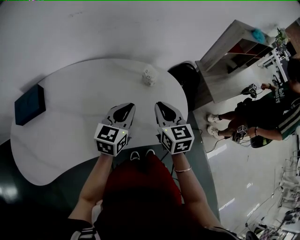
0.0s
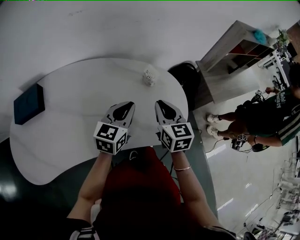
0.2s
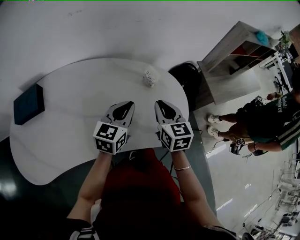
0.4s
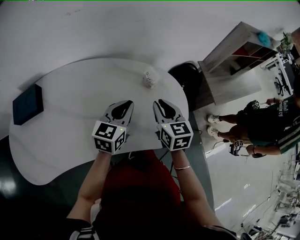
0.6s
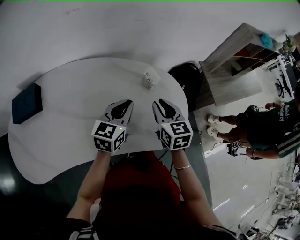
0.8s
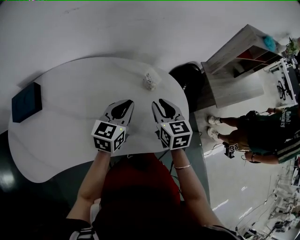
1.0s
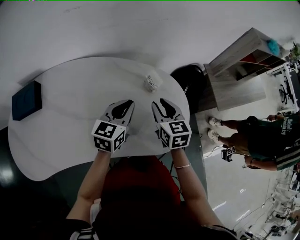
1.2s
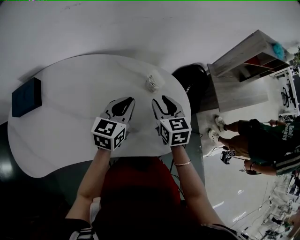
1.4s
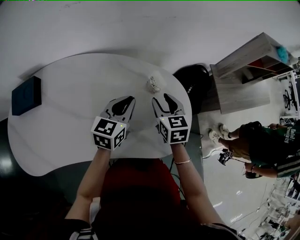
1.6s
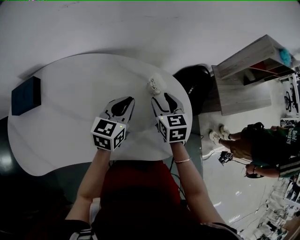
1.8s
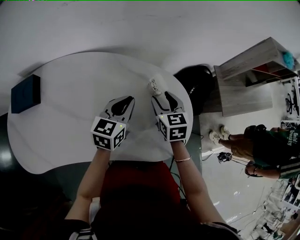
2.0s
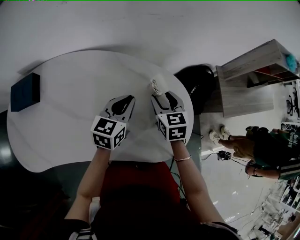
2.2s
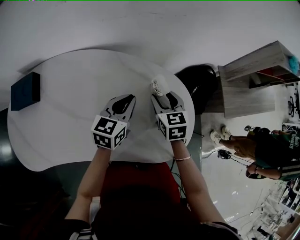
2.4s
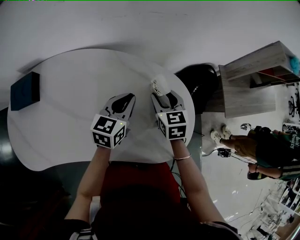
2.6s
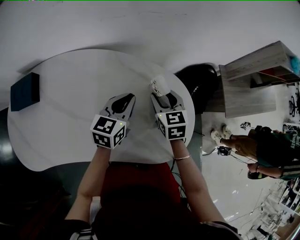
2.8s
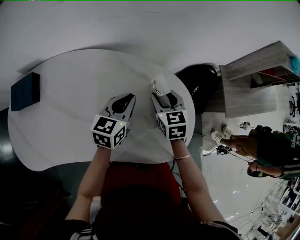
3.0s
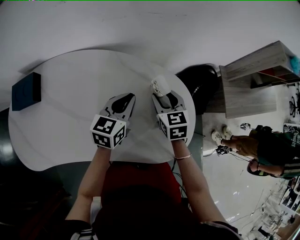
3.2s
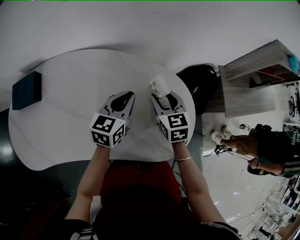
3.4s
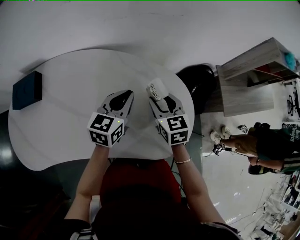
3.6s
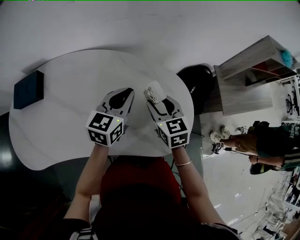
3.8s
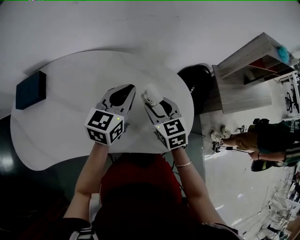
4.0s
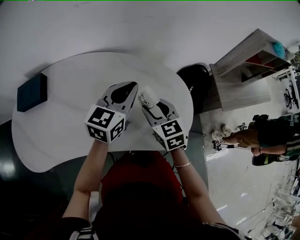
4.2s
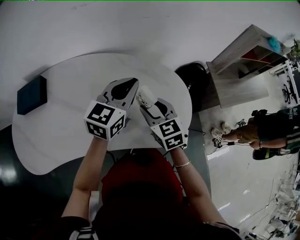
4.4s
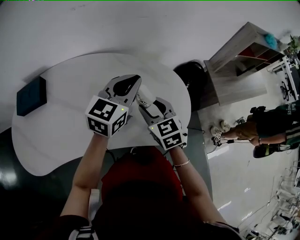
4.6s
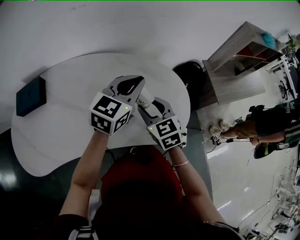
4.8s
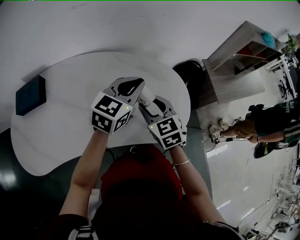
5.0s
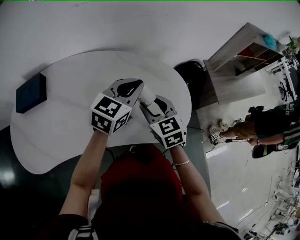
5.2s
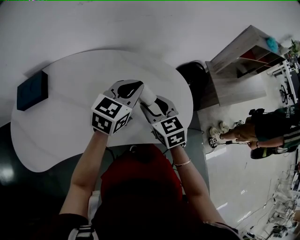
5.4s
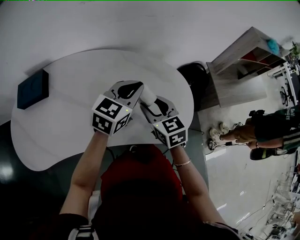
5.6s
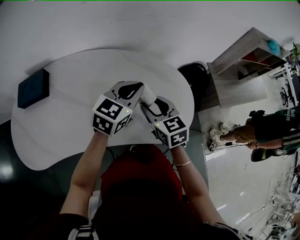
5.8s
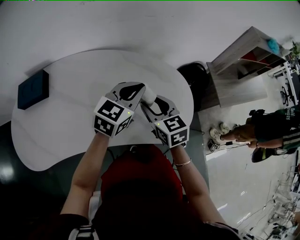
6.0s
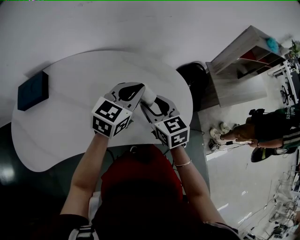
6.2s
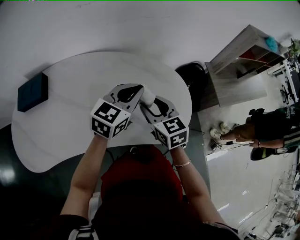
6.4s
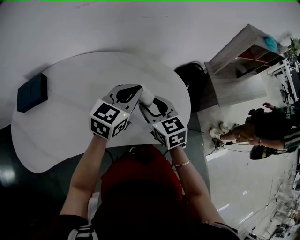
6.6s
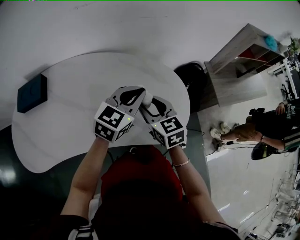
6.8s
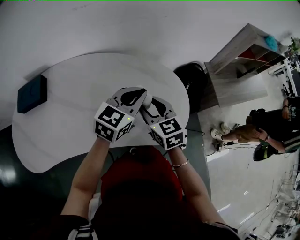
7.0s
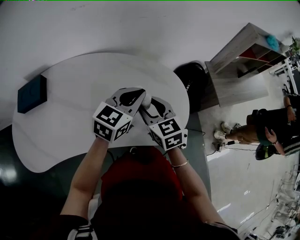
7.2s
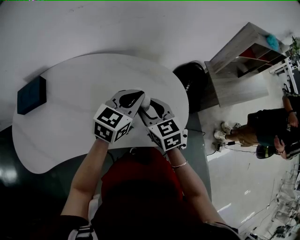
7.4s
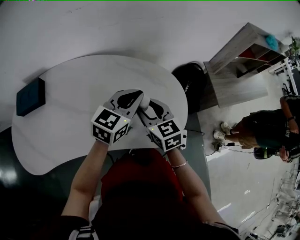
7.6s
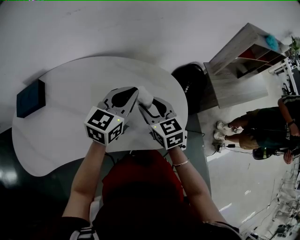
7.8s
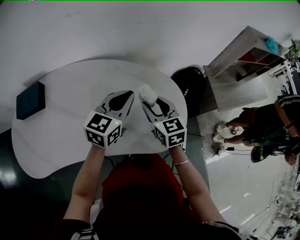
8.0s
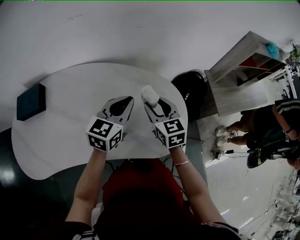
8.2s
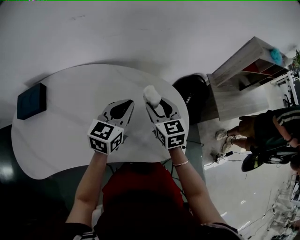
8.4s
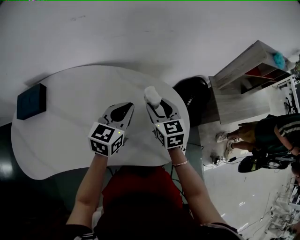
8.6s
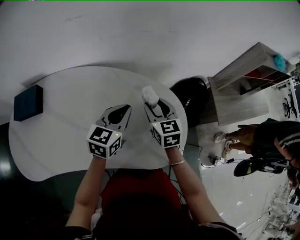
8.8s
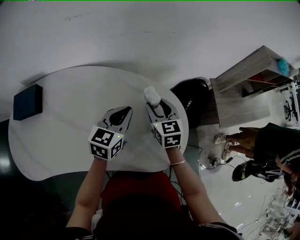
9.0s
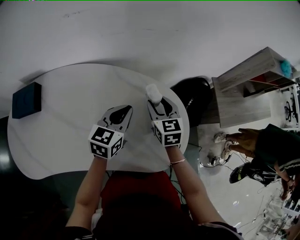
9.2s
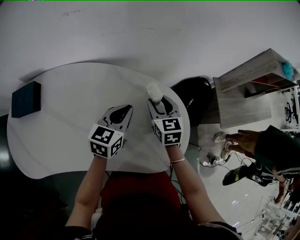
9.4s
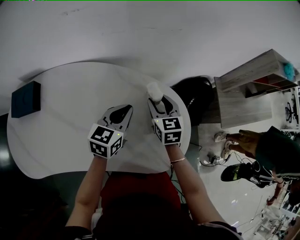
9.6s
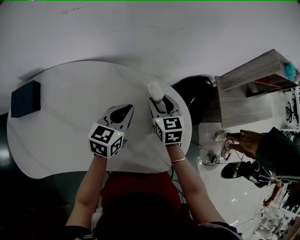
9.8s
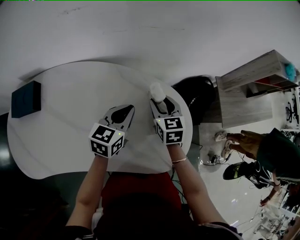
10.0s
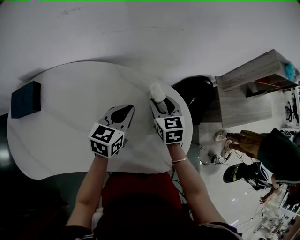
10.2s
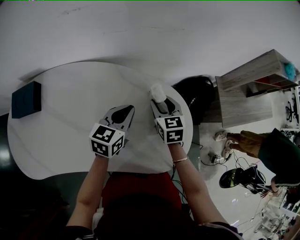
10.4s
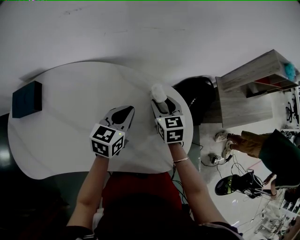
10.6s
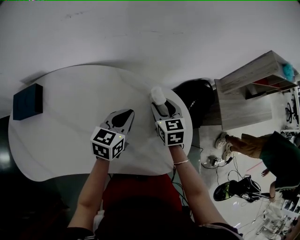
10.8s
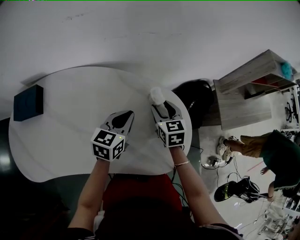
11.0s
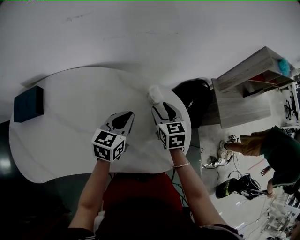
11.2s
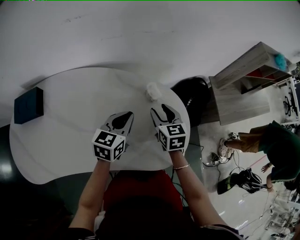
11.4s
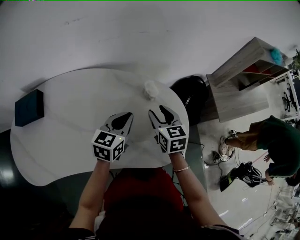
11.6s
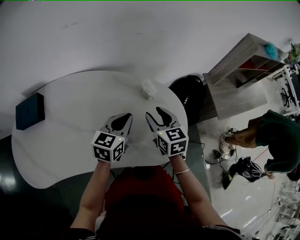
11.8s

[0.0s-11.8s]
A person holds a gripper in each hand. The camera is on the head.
0.0s to 1.4s: The left gripper goes roughly 5 cm forward. The right gripper heads forward and downward, covering roughly 10 cm, and opens up.
1.4s to 3.0s: The right gripper shifts roughly 5 cm forward.
3.0s to 4.4s: The left gripper heads upward, covering roughly 15 cm; the right gripper is displaced backward, upward and to the left by approximately 15 cm.
4.4s to 6.0s: The grippers make only small movements.
6.0s to 7.4s: There are only small adjustments of the grippers.
7.4s to 8.8s: The right gripper heads forward, covering some 10 cm. The left gripper goes approximately 5 cm forward.
8.8s to 10.4s: The right gripper shifts by roughly 5 cm.
10.4s to 11.8s: The right gripper travels backward and upward by roughly 10 cm. Meanwhile the left gripper shifts about 5 cm backward.

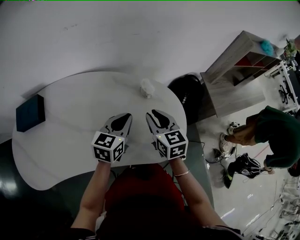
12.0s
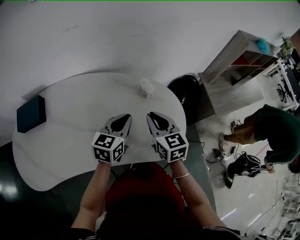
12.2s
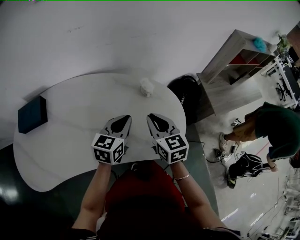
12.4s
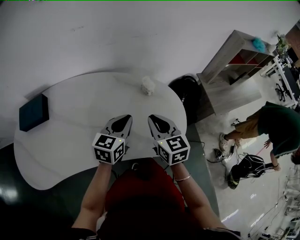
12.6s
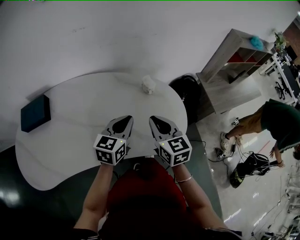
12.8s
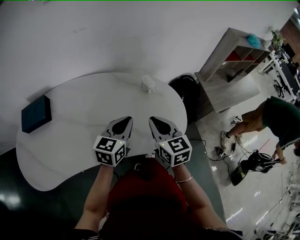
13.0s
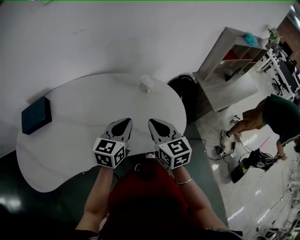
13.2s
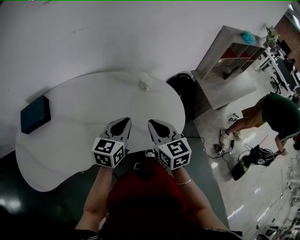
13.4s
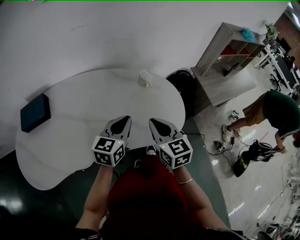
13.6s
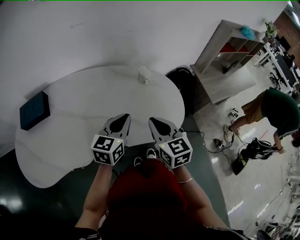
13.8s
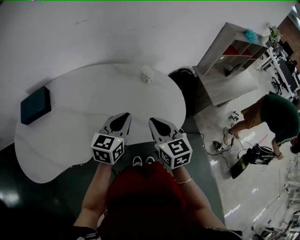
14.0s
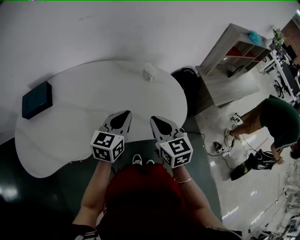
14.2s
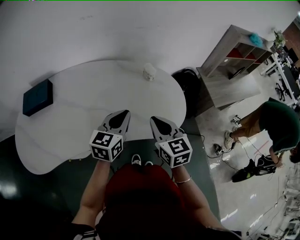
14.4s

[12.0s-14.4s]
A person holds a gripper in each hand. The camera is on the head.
12.0s to 13.2s: Both grippers travel together backward, approximately 10 cm. The right gripper closes up.
13.2s to 14.4s: The grippers stay close to where they were, moving slightly.

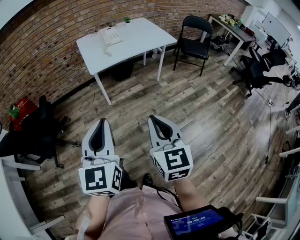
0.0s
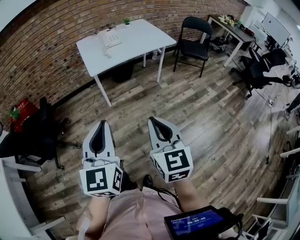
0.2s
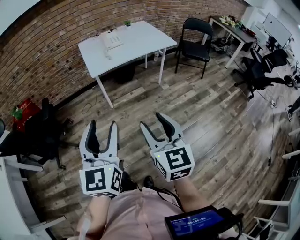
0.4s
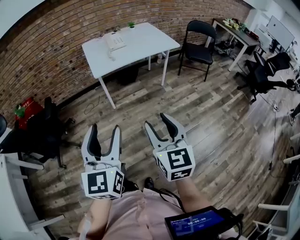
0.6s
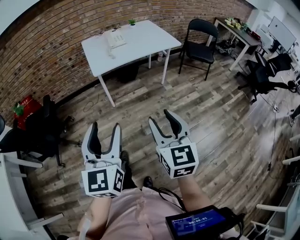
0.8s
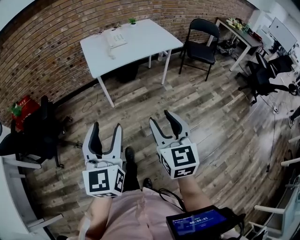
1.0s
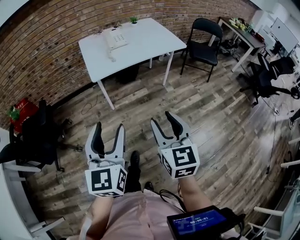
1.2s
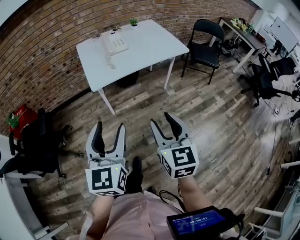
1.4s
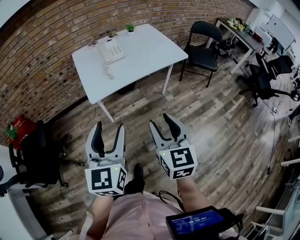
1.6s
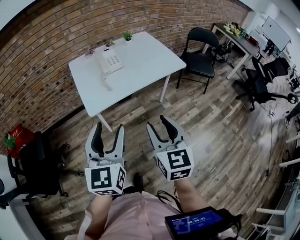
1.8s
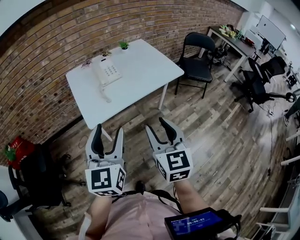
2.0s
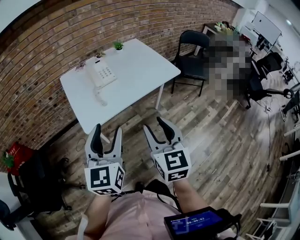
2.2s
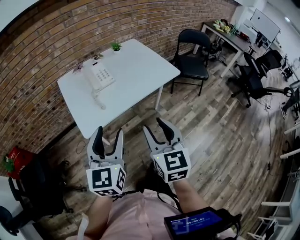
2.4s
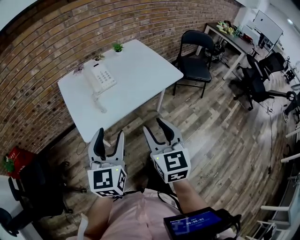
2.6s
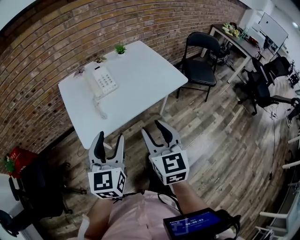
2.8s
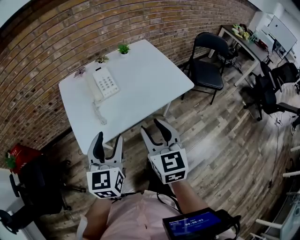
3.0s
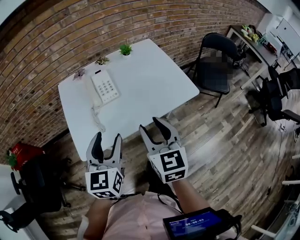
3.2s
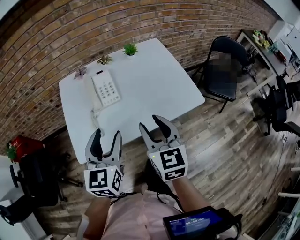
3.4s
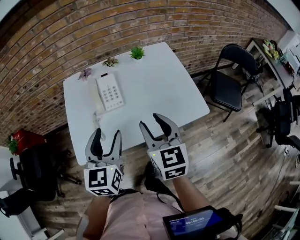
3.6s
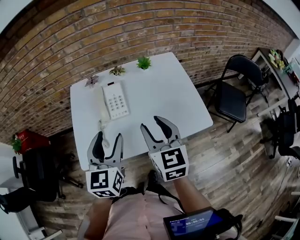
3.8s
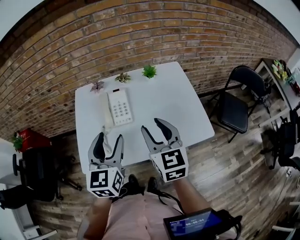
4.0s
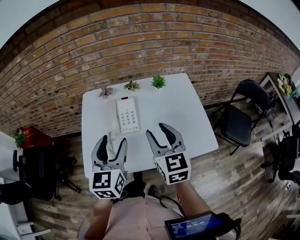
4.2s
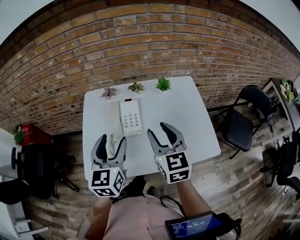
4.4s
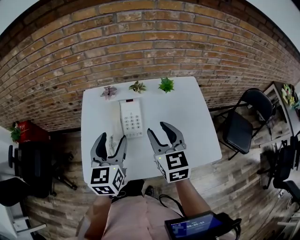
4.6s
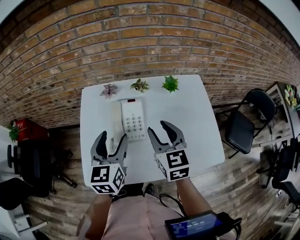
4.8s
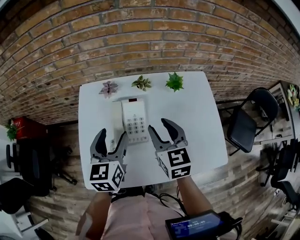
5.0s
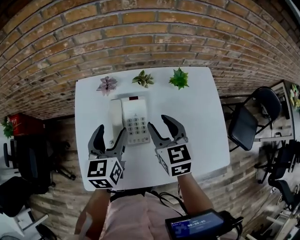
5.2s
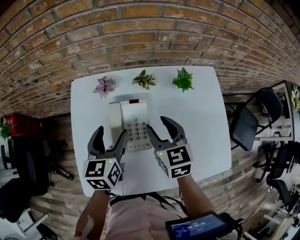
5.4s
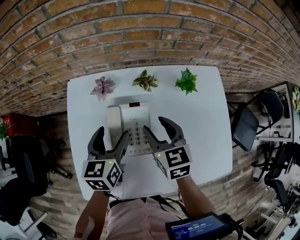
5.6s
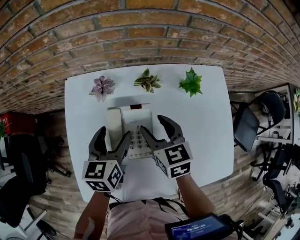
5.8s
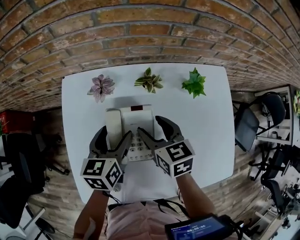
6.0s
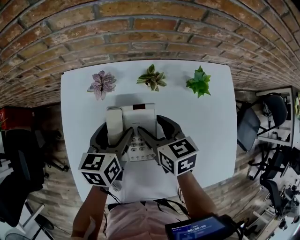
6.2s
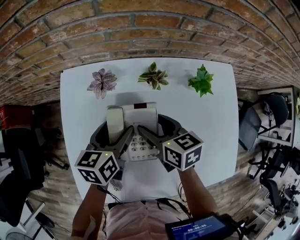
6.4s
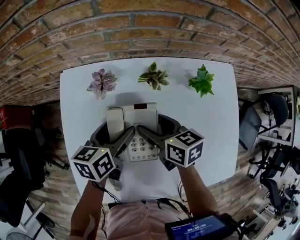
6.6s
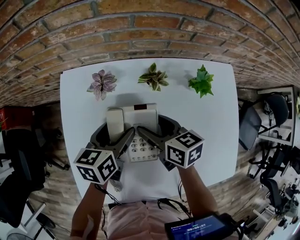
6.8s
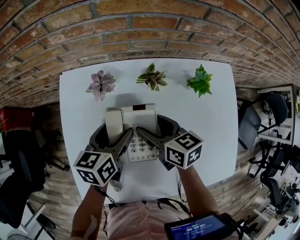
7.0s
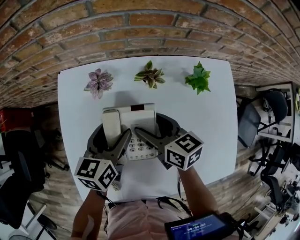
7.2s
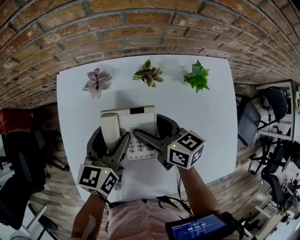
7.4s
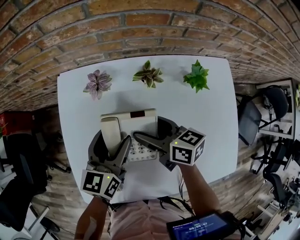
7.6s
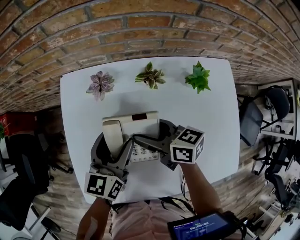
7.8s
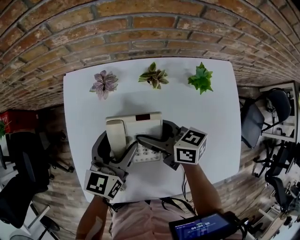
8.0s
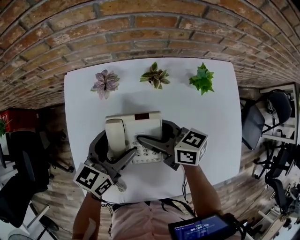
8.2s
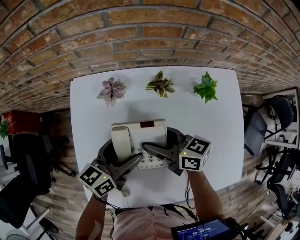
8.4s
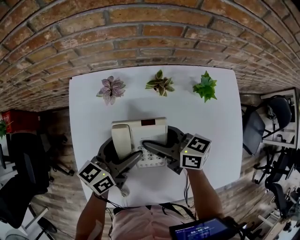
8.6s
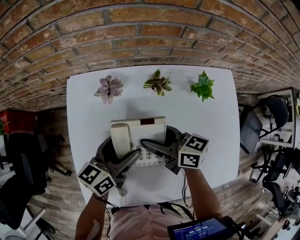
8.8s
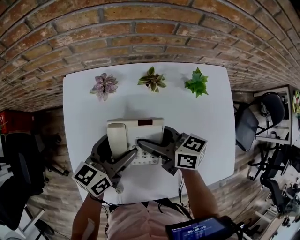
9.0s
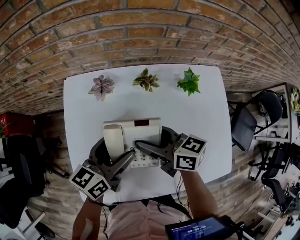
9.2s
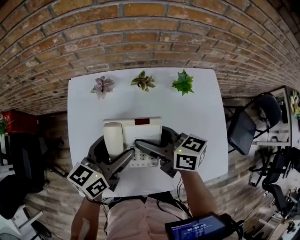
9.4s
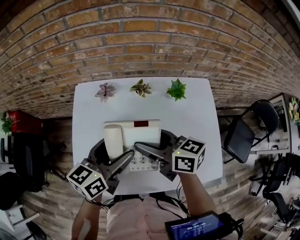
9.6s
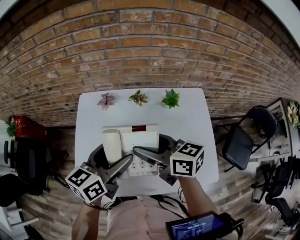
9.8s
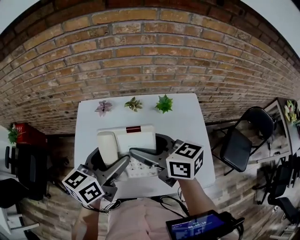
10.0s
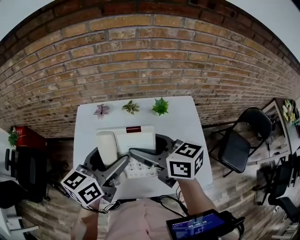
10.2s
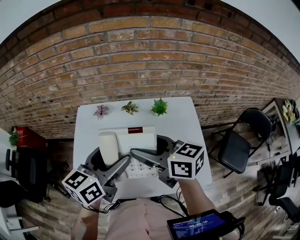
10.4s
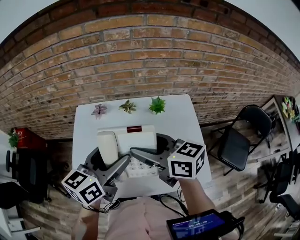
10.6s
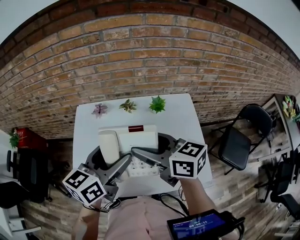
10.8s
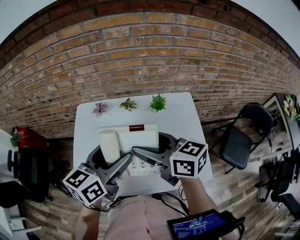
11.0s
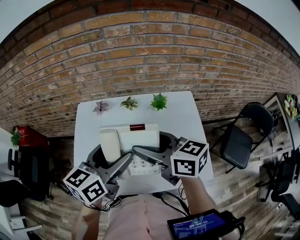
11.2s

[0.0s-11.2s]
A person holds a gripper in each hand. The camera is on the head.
0.0s to 1.6s: The two grippers go some 25 cm forward. The left gripper opens; the right gripper opens its fingers.
1.6s to 3.2s: Both grippers travel together forward, some 30 cm.
3.2s to 4.8s: The grippers both shift forward by roughly 25 cm.
4.8s to 6.4s: The grippers both shift downward and forward by some 20 cm. The left gripper swivels approximately 30 degrees. The right gripper rotates about 40 degrees.
6.4s to 8.0s: The left gripper shifts by some 5 cm, and swivels about 20 degrees. Meanwhile the right gripper turns by approximately 20 degrees.
8.0s to 9.6s: Both grippers move upward and backward, about 15 cm.
9.6s to 11.2s: The grippers both shift upward, backward and to the right by approximately 15 cm.
